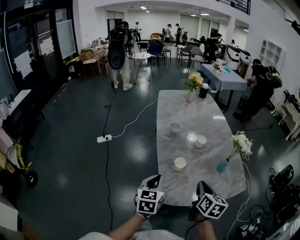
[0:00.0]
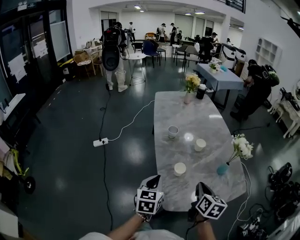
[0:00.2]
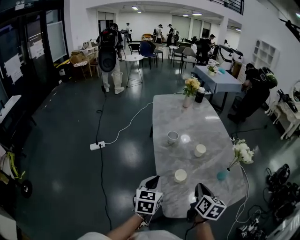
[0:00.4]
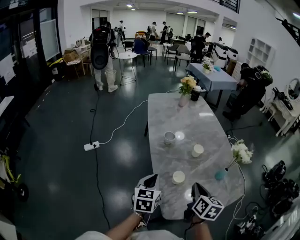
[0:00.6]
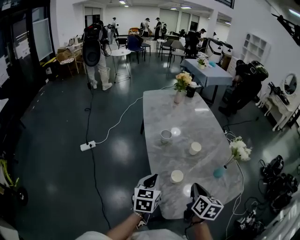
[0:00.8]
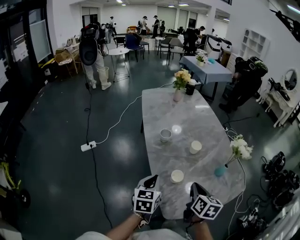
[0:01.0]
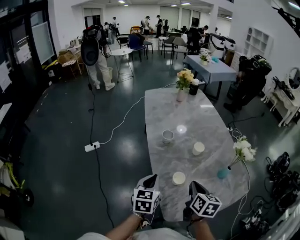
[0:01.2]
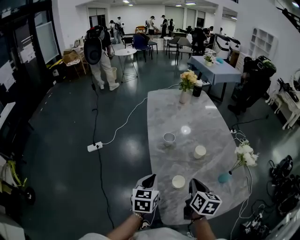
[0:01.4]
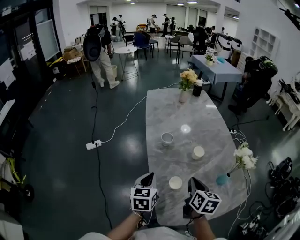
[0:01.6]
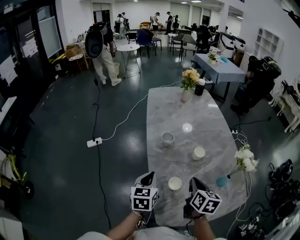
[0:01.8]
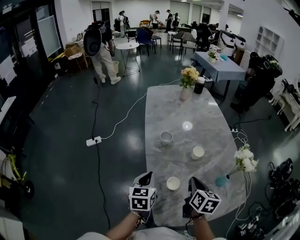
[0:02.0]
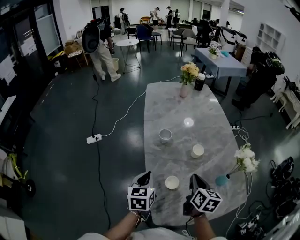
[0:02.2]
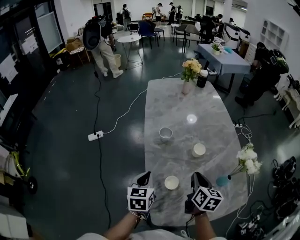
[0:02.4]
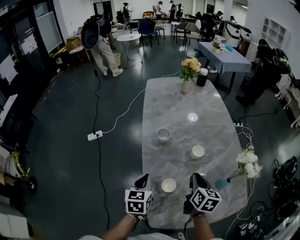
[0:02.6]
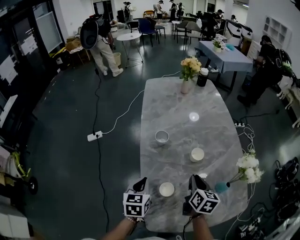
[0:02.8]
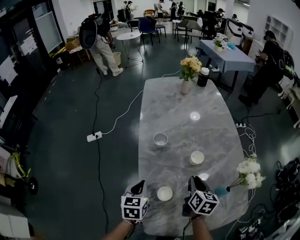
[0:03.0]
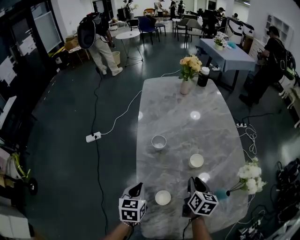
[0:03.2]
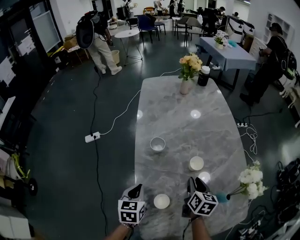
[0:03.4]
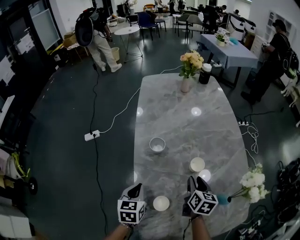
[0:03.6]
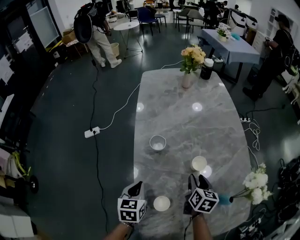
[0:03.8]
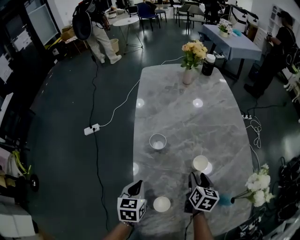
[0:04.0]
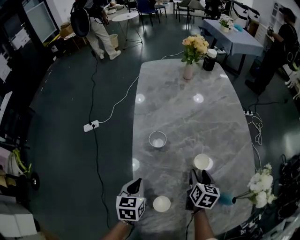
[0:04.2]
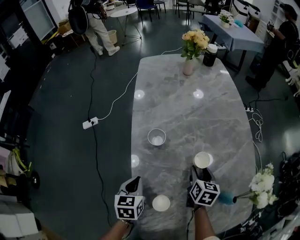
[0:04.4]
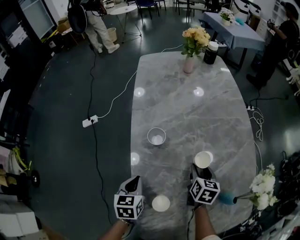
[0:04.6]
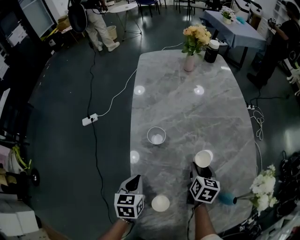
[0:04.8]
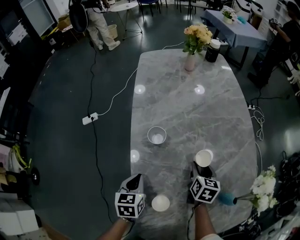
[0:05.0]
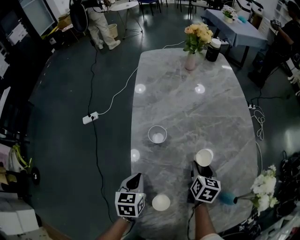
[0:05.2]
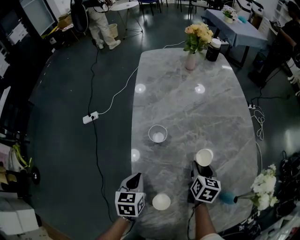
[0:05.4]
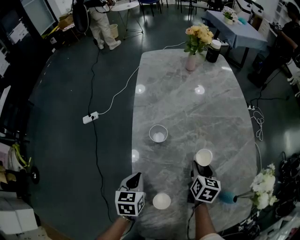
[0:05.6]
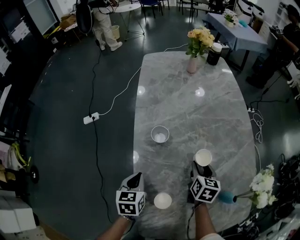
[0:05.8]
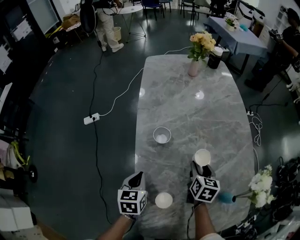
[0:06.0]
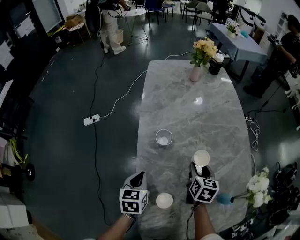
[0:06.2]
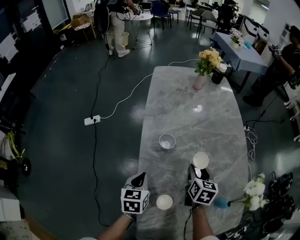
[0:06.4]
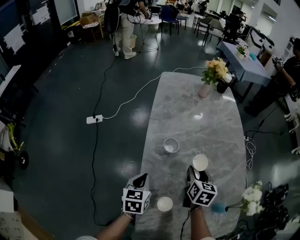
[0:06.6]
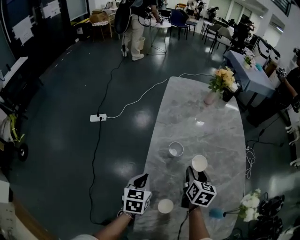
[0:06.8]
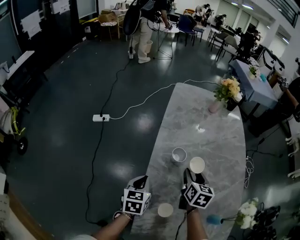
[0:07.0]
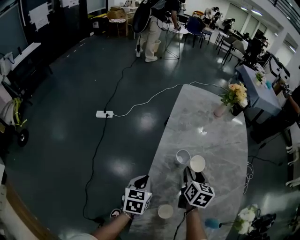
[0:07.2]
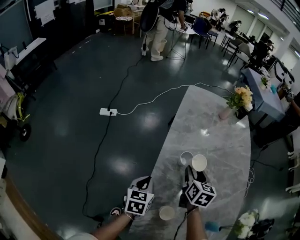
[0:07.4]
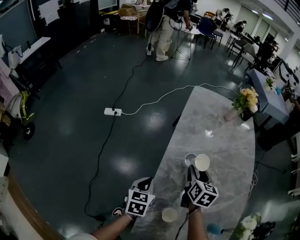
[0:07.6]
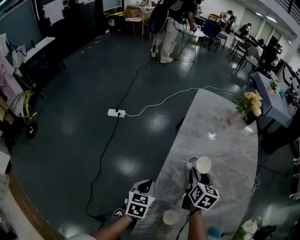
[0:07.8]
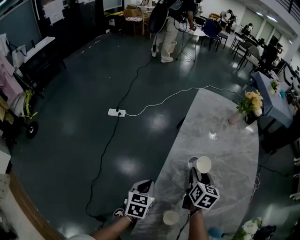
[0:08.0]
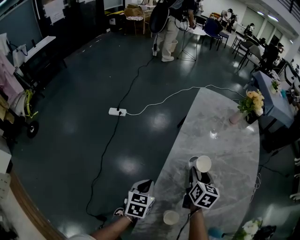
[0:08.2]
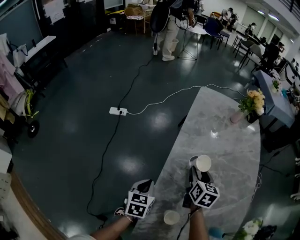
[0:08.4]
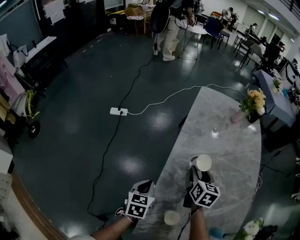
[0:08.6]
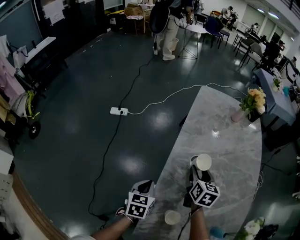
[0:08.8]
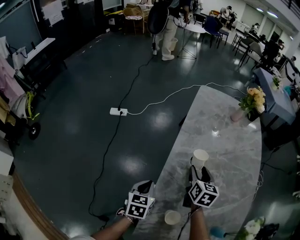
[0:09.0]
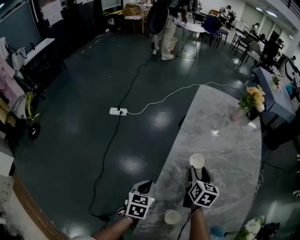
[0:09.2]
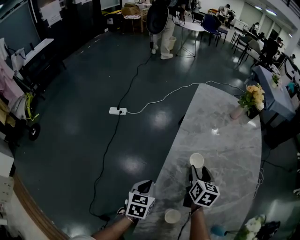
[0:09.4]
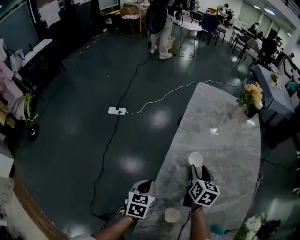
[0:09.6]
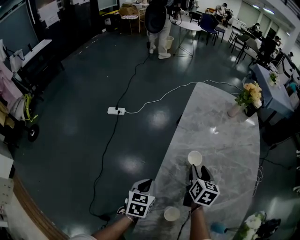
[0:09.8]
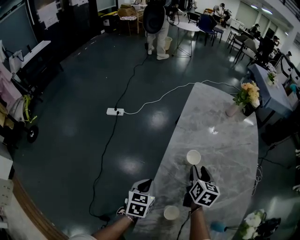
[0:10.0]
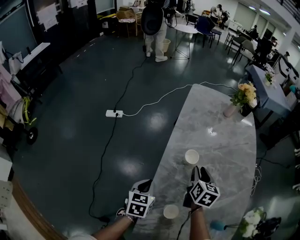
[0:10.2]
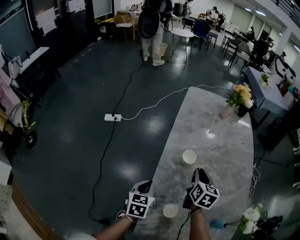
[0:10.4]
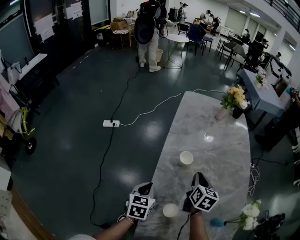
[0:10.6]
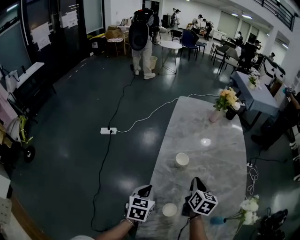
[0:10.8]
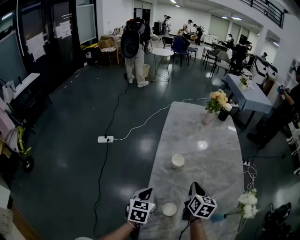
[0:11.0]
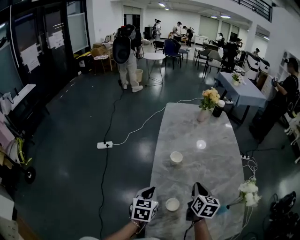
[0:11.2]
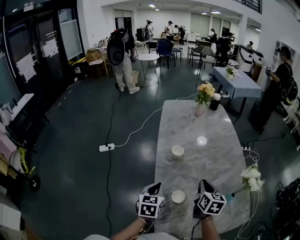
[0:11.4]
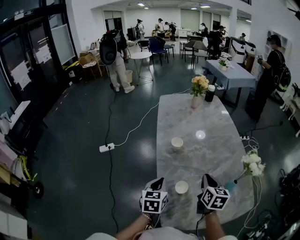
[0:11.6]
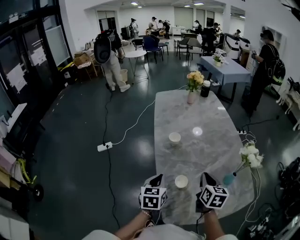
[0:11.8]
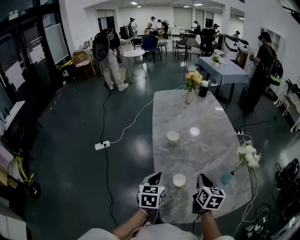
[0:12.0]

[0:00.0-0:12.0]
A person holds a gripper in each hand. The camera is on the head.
0:00.0 to 0:01.6: The two grippers go roughly 15 cm forward.
0:01.6 to 0:03.0: The right gripper is displaced forward, downward and to the right by about 15 cm, while the left gripper shifts roughly 5 cm downward.
0:03.0 to 0:04.4: The left gripper heads downward and forward, covering approximately 10 cm, while the right gripper heads forward and downward, covering about 15 cm, and opens its fingers.
0:04.4 to 0:06.0: The grippers stay close to where they were, moving slightly.
0:06.0 to 0:07.6: The left gripper moves to the left, roughly 5 cm. The right gripper moves to the left, upward and forward, approximately 20 cm.
0:07.6 to 0:09.0: The grippers make only small movements.
0:09.0 to 0:10.4: The right gripper changes place by approximately 5 cm, and closes up.
0:10.4 to 0:12.0: The left gripper travels upward, backward and to the right by roughly 15 cm. The right gripper heads backward, covering roughly 25 cm.

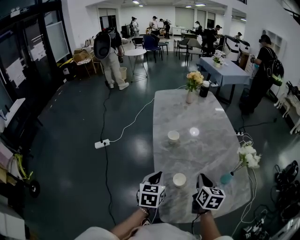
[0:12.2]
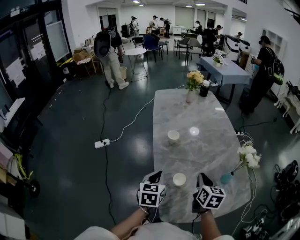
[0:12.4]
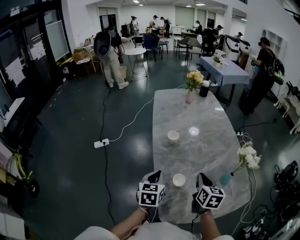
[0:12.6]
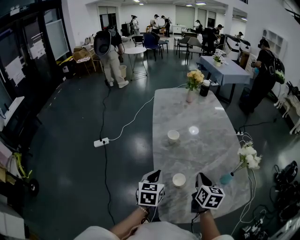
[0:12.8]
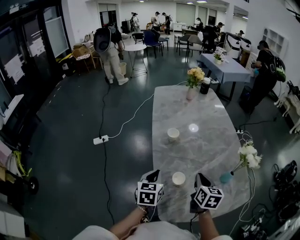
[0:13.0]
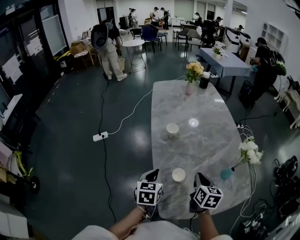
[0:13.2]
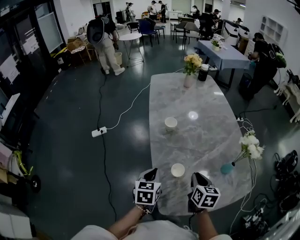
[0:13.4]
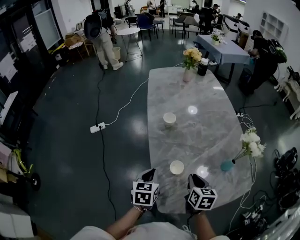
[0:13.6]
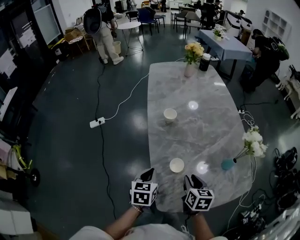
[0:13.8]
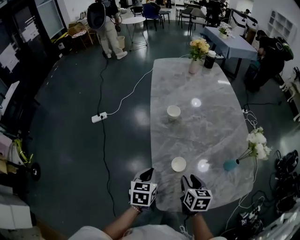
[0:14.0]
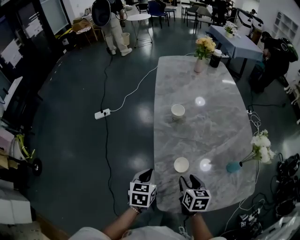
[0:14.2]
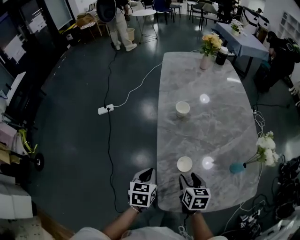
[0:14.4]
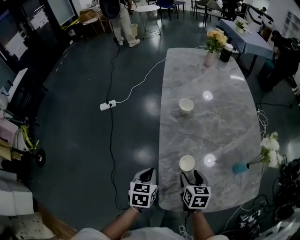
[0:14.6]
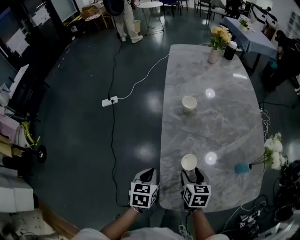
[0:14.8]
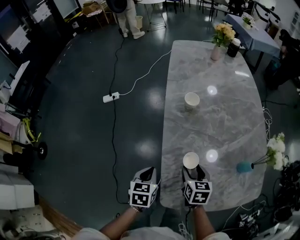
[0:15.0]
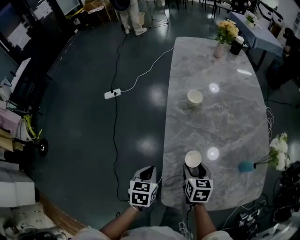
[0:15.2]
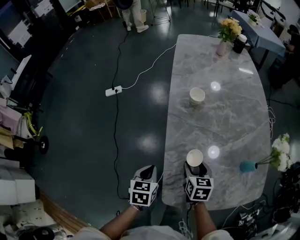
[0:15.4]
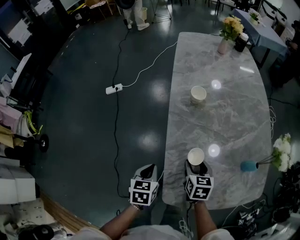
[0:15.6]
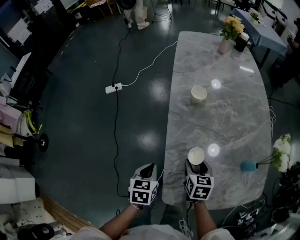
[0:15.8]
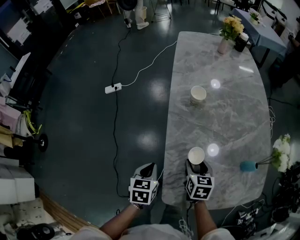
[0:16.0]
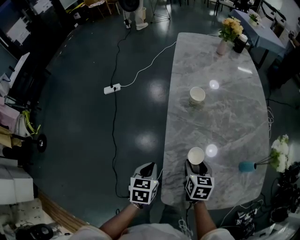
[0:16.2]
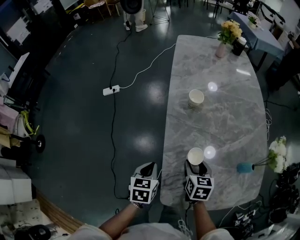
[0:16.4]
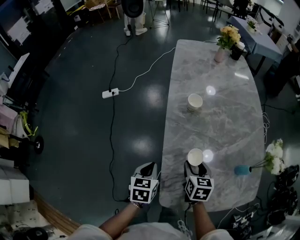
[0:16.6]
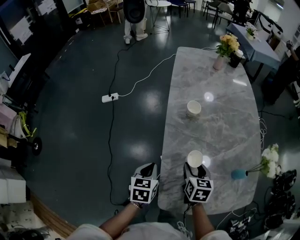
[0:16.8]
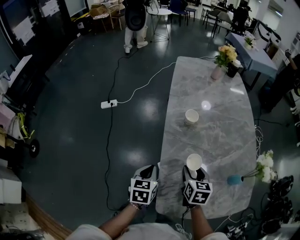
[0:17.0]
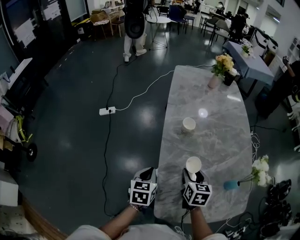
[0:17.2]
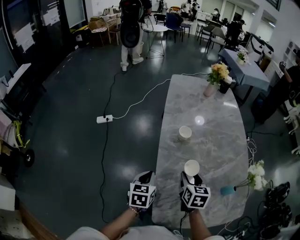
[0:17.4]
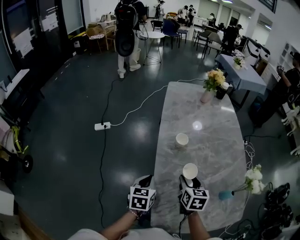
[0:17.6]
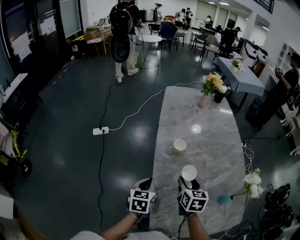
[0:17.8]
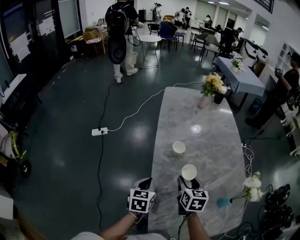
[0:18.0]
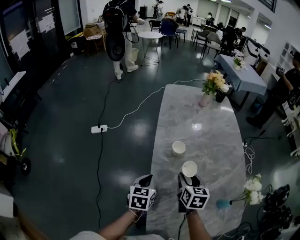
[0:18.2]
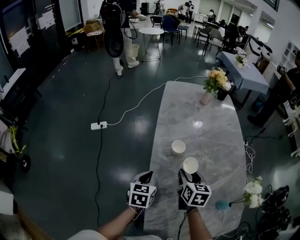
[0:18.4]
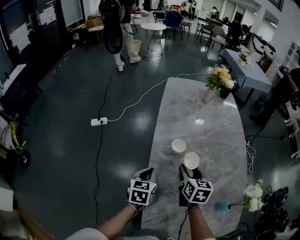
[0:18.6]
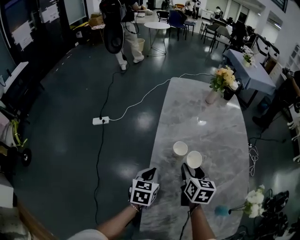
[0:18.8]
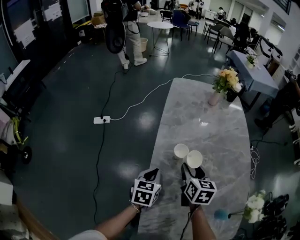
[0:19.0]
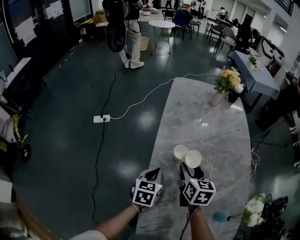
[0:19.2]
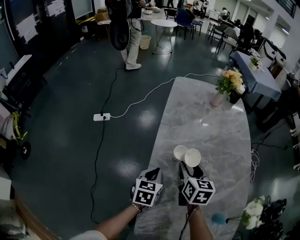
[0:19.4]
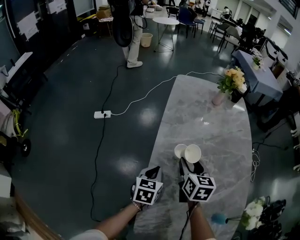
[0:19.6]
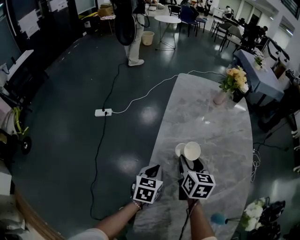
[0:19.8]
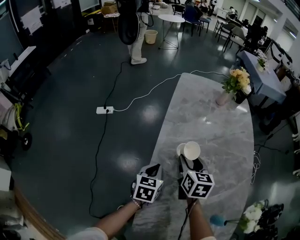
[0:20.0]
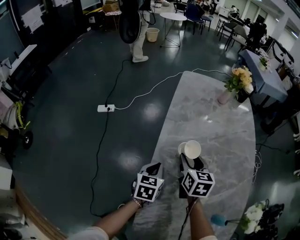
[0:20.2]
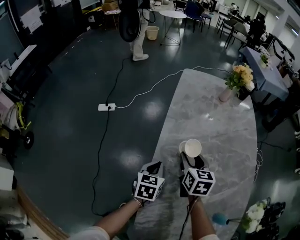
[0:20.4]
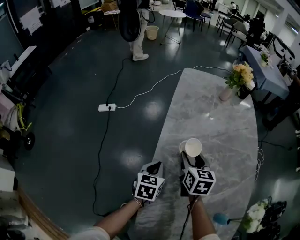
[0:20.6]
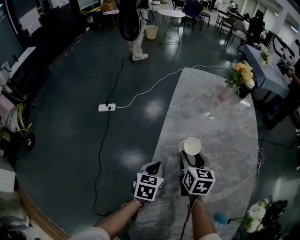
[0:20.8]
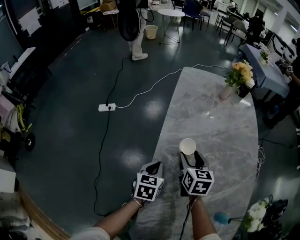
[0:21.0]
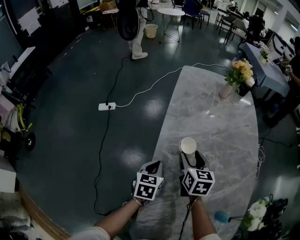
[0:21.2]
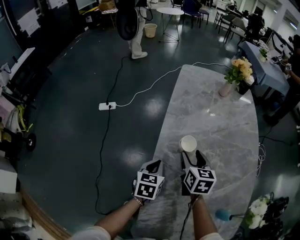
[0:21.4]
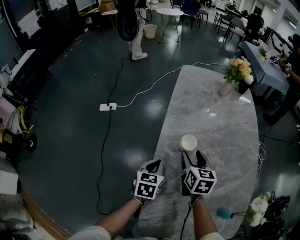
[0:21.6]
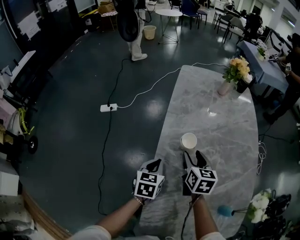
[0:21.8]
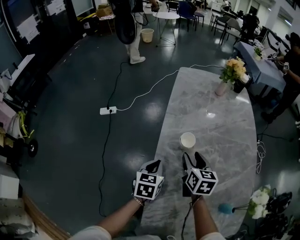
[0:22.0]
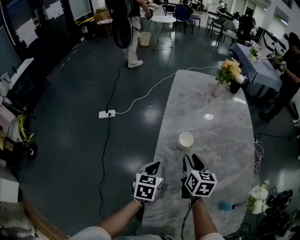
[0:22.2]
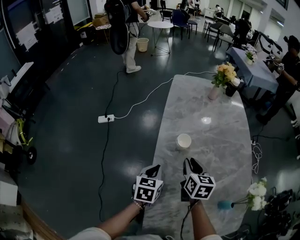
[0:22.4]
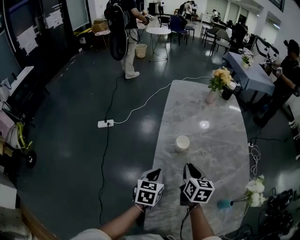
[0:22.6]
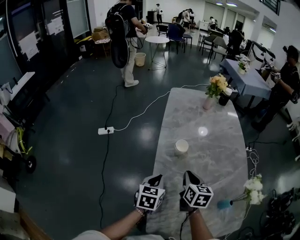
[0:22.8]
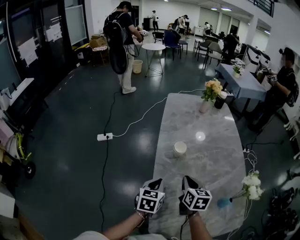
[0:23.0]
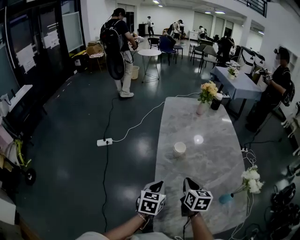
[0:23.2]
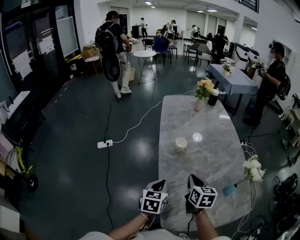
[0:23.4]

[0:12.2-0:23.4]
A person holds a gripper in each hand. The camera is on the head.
0:12.2 to 0:13.8: The grippers both shift downward by roughly 10 cm.
0:13.8 to 0:15.4: The grippers both shift downward and to the left by approximately 10 cm. The right gripper opens.
0:15.4 to 0:17.0: The left gripper goes roughly 5 cm forward, while the right gripper travels upward by approximately 5 cm.
0:17.0 to 0:18.6: The two grippers go roughly 15 cm forward.
0:18.6 to 0:20.2: The left gripper shifts by some 5 cm; the right gripper moves forward, about 10 cm.
0:20.2 to 0:21.8: The grippers make only small movements.
0:21.8 to 0:23.4: The right gripper shifts some 20 cm backward, and closes its fingers. Meanwhile the left gripper moves backward and upward, about 15 cm.

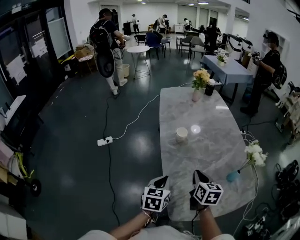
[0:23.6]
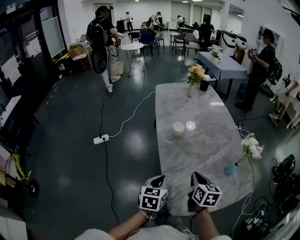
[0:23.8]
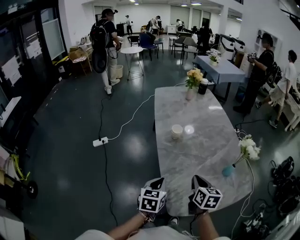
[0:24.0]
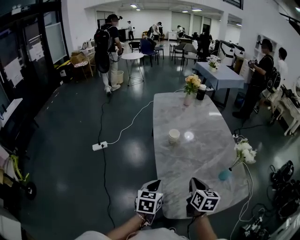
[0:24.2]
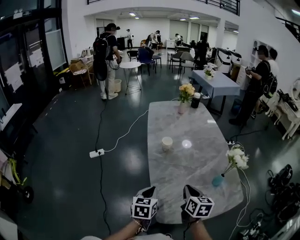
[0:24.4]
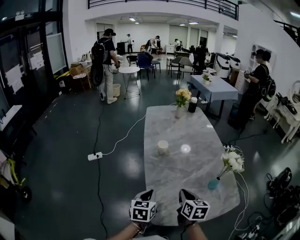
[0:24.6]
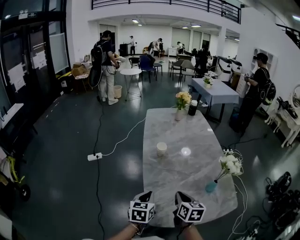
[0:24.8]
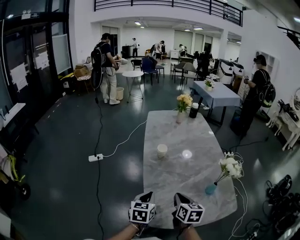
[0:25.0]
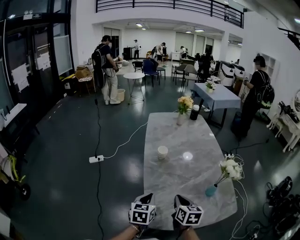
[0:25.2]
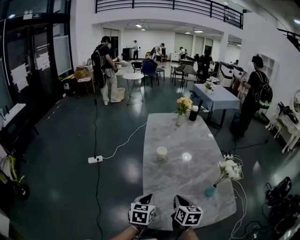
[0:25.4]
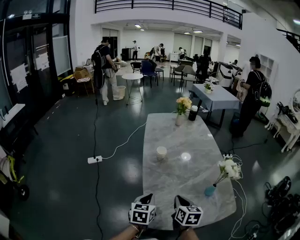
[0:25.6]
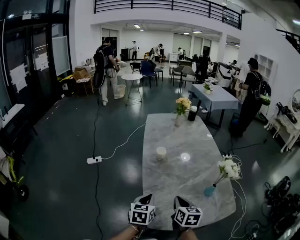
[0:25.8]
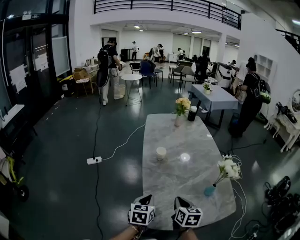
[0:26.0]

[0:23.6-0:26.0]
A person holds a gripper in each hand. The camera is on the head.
0:23.6 to 0:24.8: The left gripper moves backward, approximately 5 cm, while the right gripper is displaced backward by approximately 10 cm.
0:24.8 to 0:26.0: Both grippers stay put.
